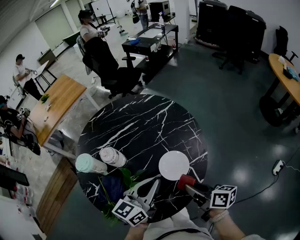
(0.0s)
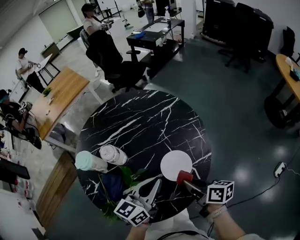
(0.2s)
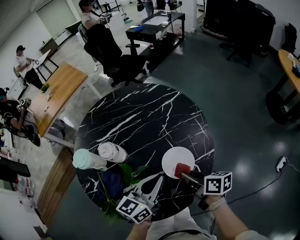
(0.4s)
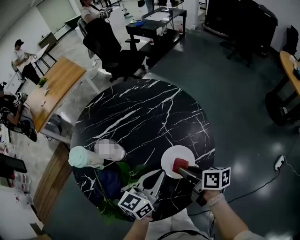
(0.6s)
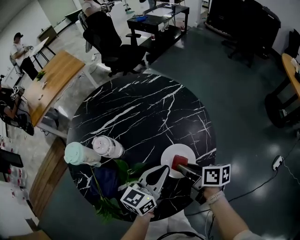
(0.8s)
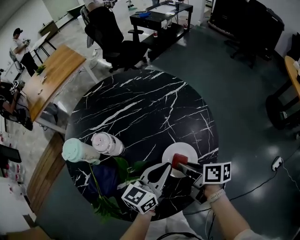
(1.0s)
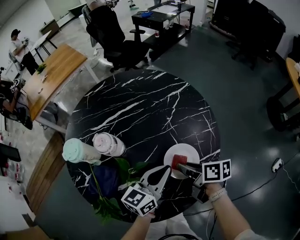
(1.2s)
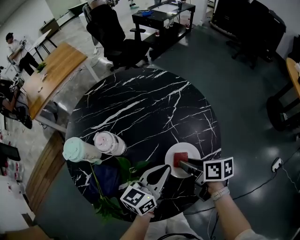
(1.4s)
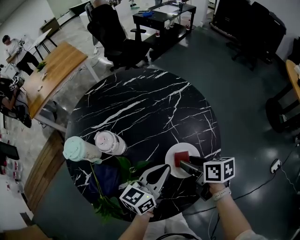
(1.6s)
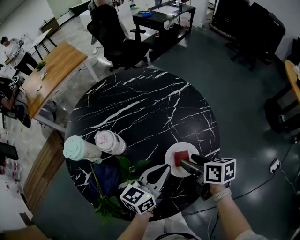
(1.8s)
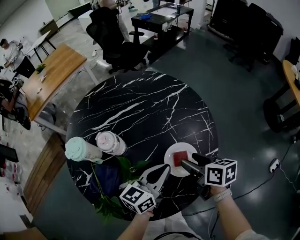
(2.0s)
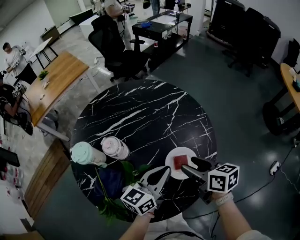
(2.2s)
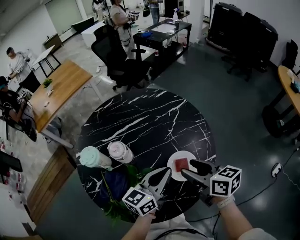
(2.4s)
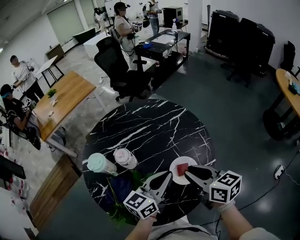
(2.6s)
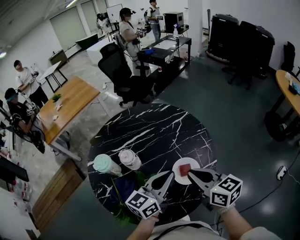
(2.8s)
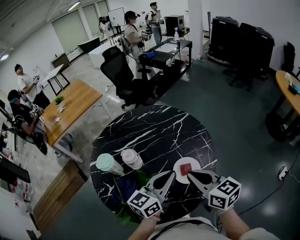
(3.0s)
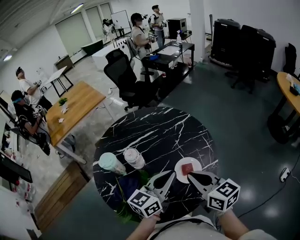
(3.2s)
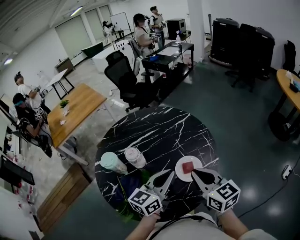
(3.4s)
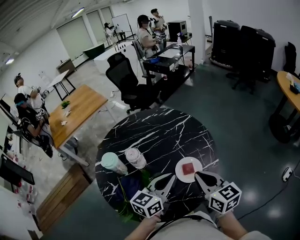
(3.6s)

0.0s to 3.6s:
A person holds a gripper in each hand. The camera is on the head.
0.0s to 1.8s: The left gripper moves downward, about 10 cm, while the right gripper moves forward and downward, about 15 cm, swivels some 20 degrees, and opens.
1.8s to 3.6s: The right gripper moves upward and backward, some 20 cm, swivels about 40 degrees, and closes its fingers; the left gripper is displaced upward by roughly 15 cm.

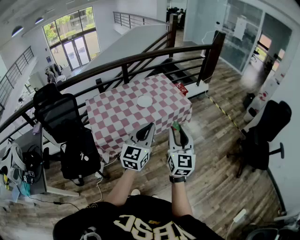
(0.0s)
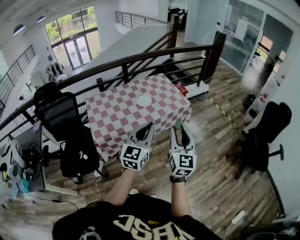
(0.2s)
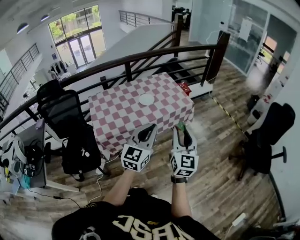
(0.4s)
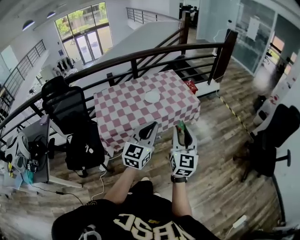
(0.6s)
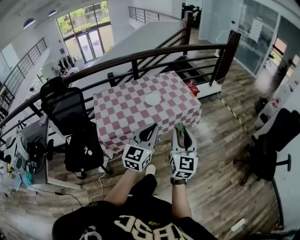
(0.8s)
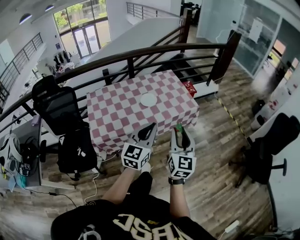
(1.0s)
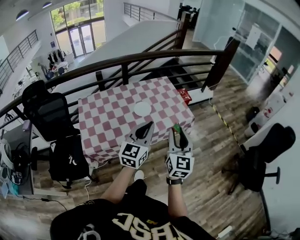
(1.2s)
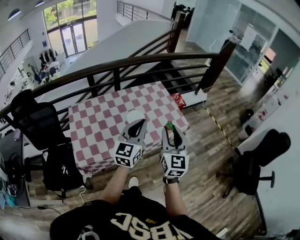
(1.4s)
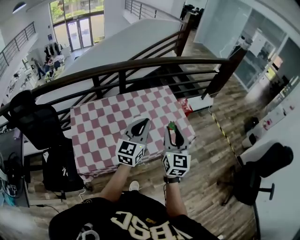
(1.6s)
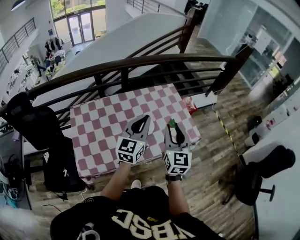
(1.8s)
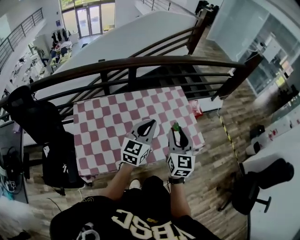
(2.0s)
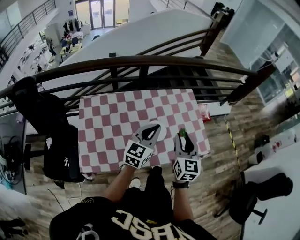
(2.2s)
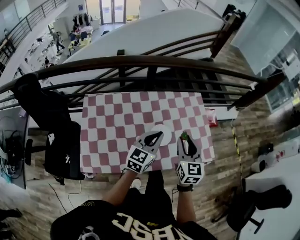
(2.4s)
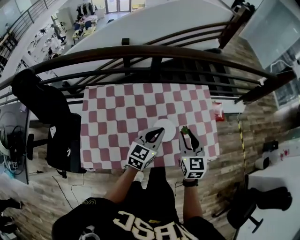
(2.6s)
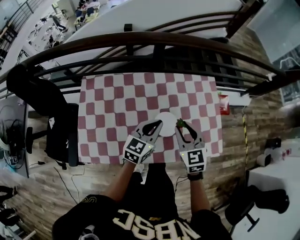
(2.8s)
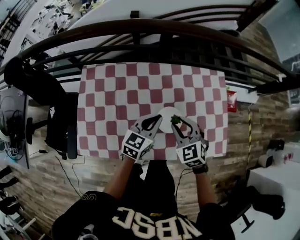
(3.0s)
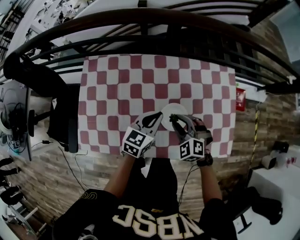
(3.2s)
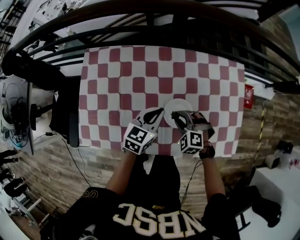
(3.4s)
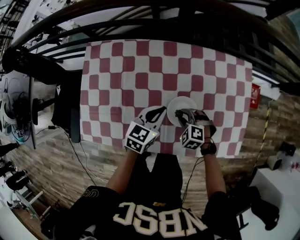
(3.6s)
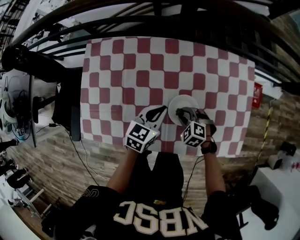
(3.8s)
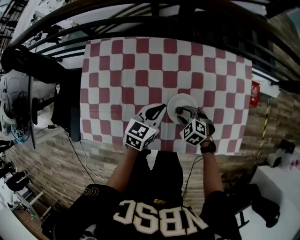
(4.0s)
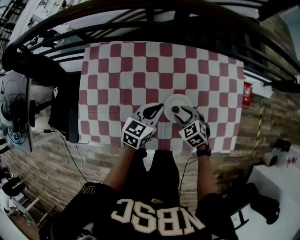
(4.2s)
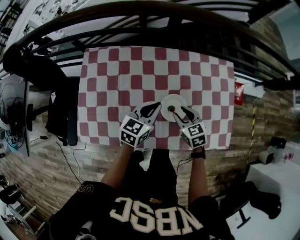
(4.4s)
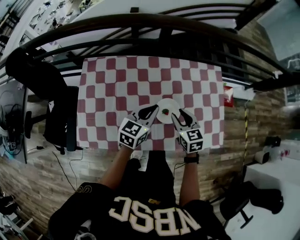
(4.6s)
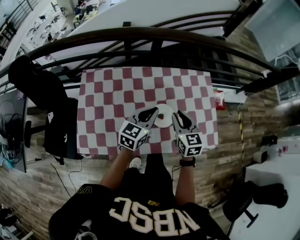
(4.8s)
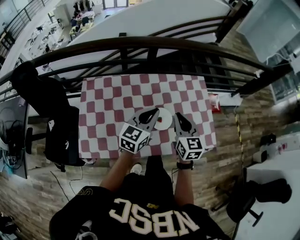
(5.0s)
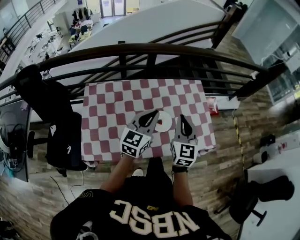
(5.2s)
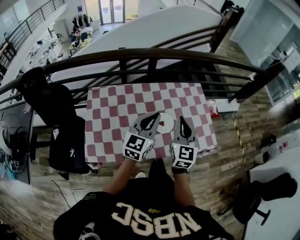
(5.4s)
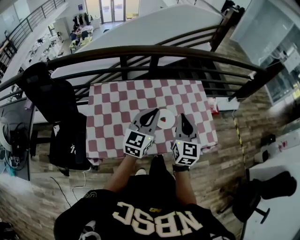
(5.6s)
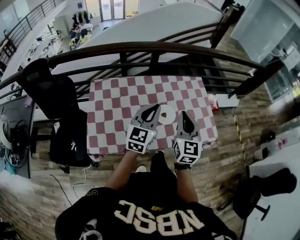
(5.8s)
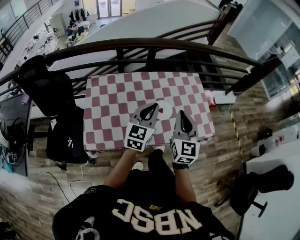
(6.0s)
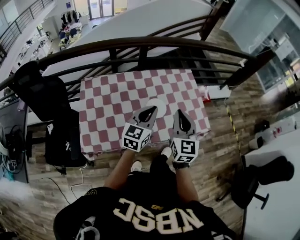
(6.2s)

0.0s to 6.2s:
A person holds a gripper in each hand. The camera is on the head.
0.0s to 1.6s: The grippers both shift forward by roughly 35 cm.
1.6s to 3.2s: Both grippers travel together downward, approximately 30 cm. The left gripper turns by about 30 degrees; the right gripper tilts its fingers approximately 50 degrees downward.
3.2s to 4.6s: The right gripper travels downward and back again, approximately 15 cm each way, and twists roughly 50 degrees clockwise, seen from behind. The left gripper changes place by roughly 5 cm.
4.6s to 6.2s: Both grippers move upward and backward, roughly 20 cm. The right gripper swivels roughly 40 degrees, and closes its fingers.

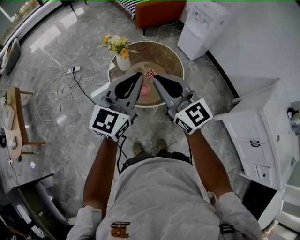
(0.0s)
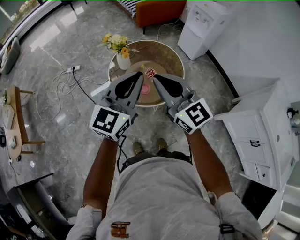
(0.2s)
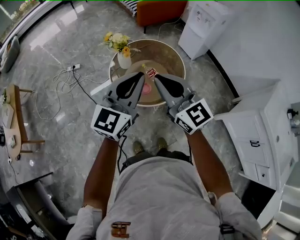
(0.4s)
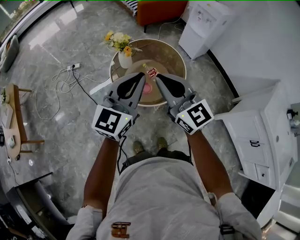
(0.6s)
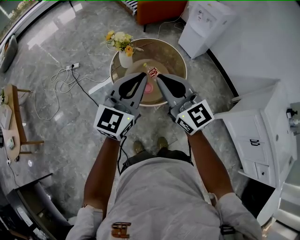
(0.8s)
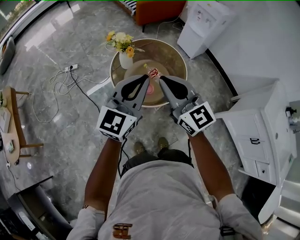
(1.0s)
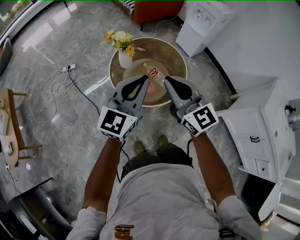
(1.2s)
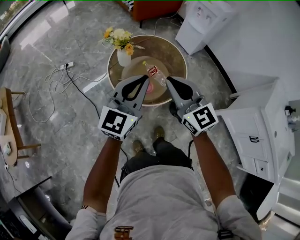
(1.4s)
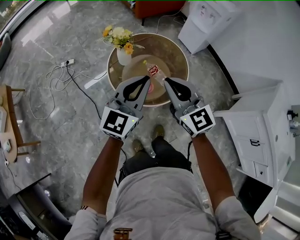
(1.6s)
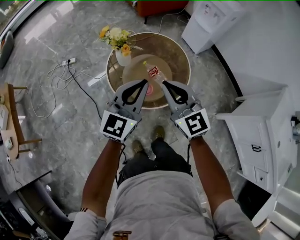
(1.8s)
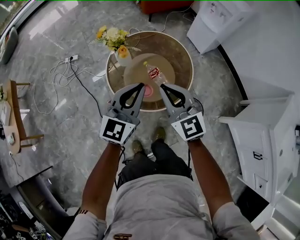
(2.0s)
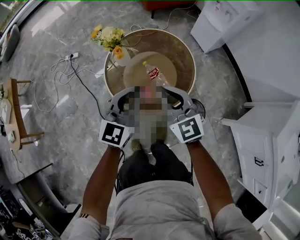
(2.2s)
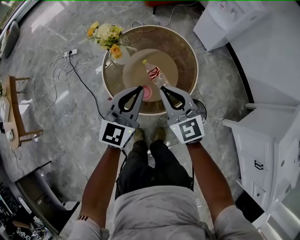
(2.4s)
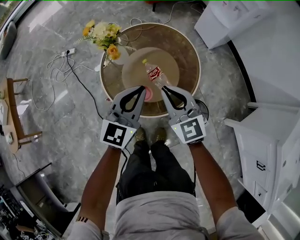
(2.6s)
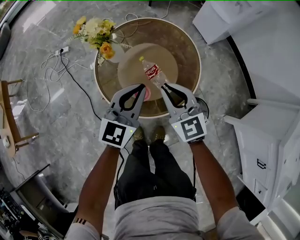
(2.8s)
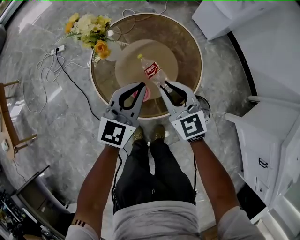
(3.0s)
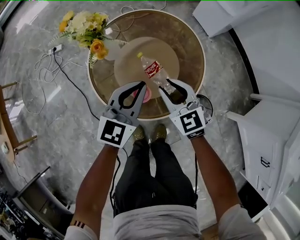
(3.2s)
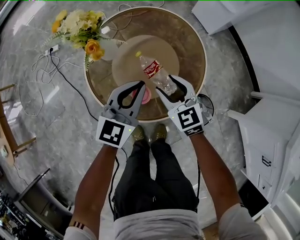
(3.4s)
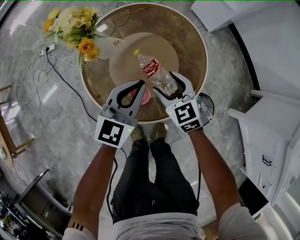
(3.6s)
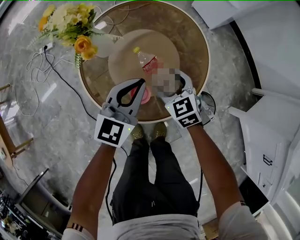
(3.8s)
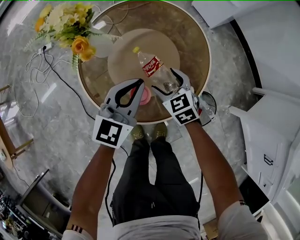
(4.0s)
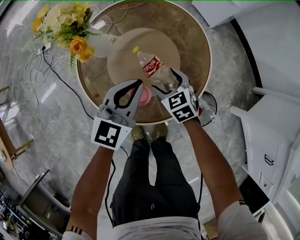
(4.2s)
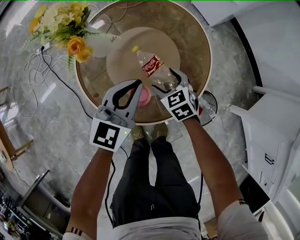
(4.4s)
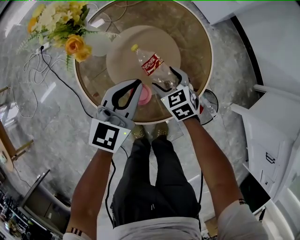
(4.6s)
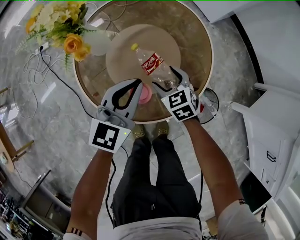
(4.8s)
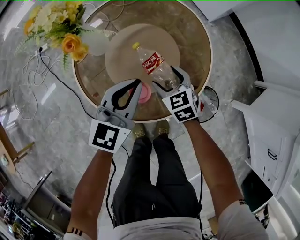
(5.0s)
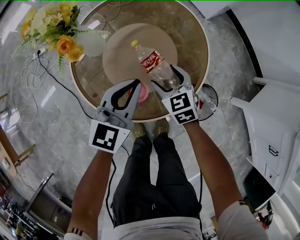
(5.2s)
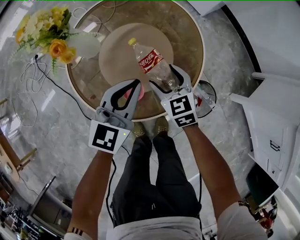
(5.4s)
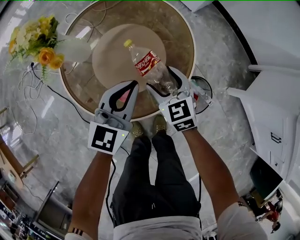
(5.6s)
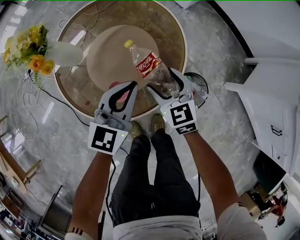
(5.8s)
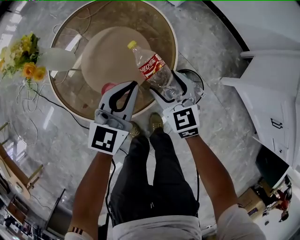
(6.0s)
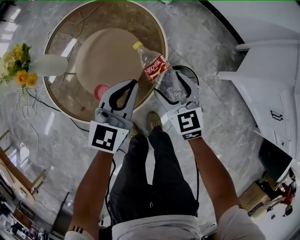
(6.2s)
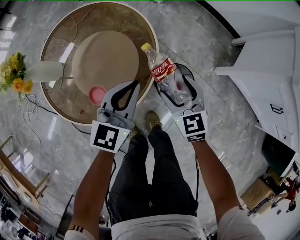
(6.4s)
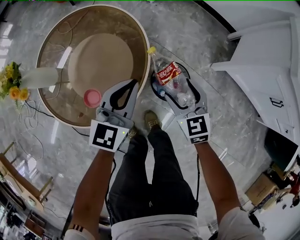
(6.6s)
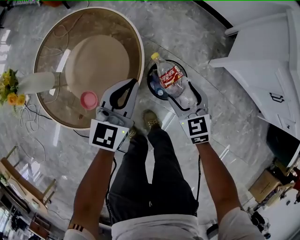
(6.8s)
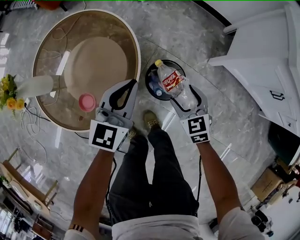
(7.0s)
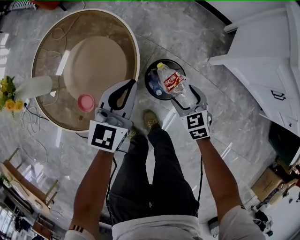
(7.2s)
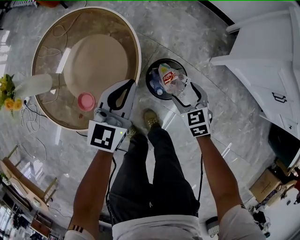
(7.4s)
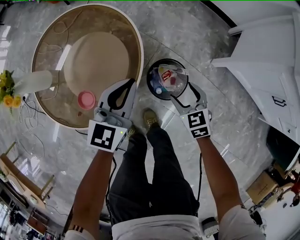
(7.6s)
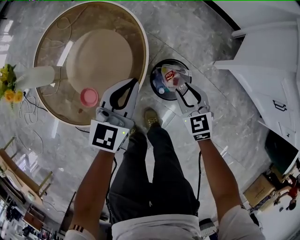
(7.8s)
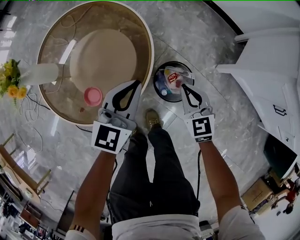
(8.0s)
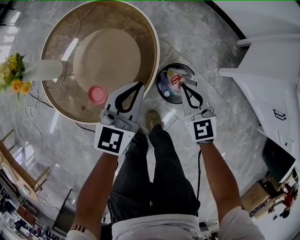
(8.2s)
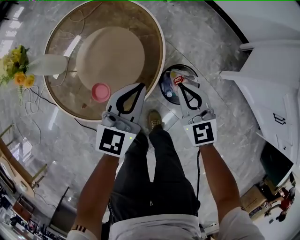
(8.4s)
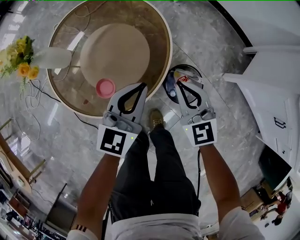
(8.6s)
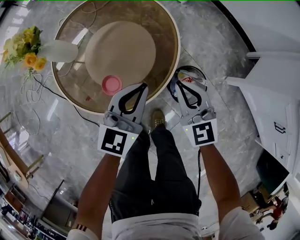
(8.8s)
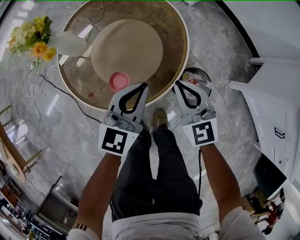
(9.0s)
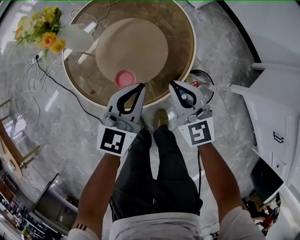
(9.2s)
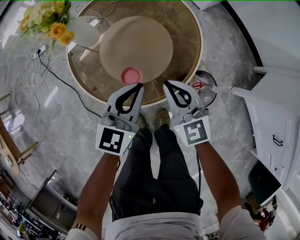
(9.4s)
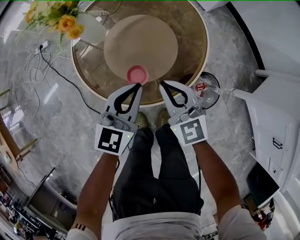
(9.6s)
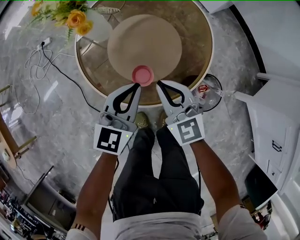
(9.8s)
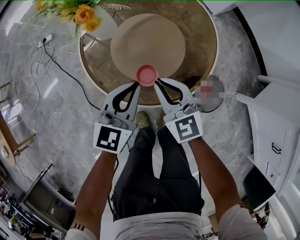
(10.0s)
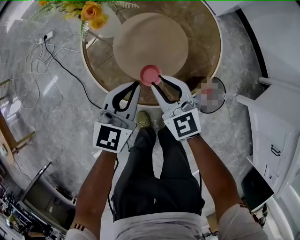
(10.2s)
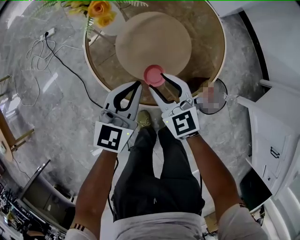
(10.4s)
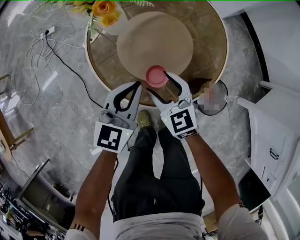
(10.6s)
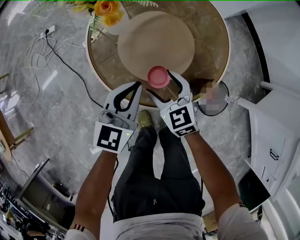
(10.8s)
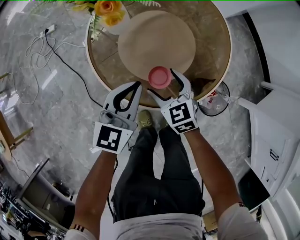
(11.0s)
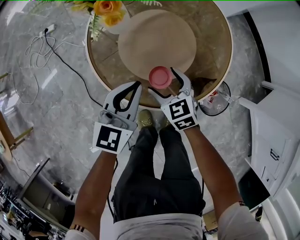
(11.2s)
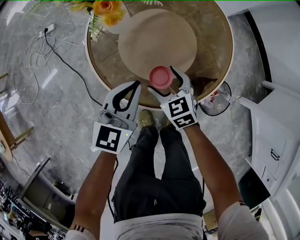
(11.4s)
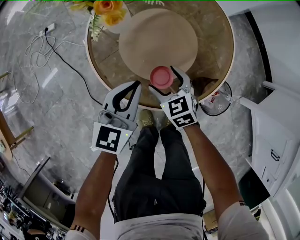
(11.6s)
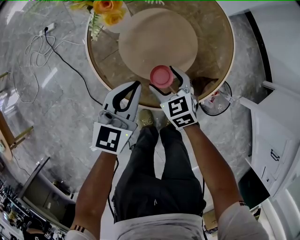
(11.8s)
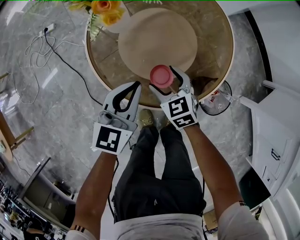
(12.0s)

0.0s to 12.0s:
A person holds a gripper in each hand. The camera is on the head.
0.0s to 1.6s: The grippers both shift downward and forward by approximately 10 cm.
1.6s to 3.0s: The two grippers go some 30 cm downward and forward.
3.0s to 4.4s: The left gripper goes about 10 cm downward, while the right gripper heads downward, covering about 25 cm, swivels approximately 30 degrees, and opens.
4.4s to 6.0s: The left gripper heads to the right, covering some 10 cm, while the right gripper travels to the right, upward and backward by approximately 15 cm, and swivels roughly 30 degrees.
6.0s to 7.6s: The left gripper is displaced to the right by roughly 15 cm, while the right gripper goes approximately 20 cm to the right.
7.6s to 9.0s: The left gripper shifts approximately 10 cm to the left, while the right gripper heads to the left and upward, covering roughly 25 cm, swivels about 30 degrees, and closes up.
9.0s to 10.4s: The grippers both shift to the left by approximately 20 cm. The right gripper opens up.
10.4s to 12.0s: The right gripper moves downward, roughly 10 cm, and opens.

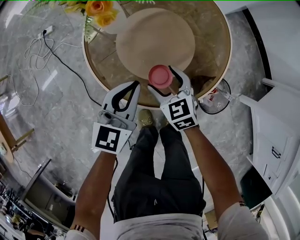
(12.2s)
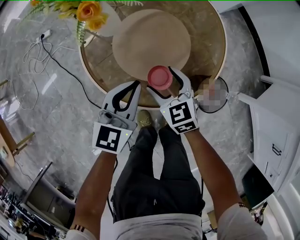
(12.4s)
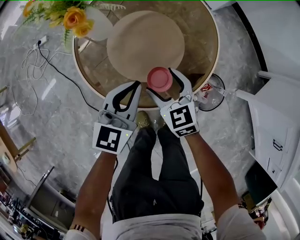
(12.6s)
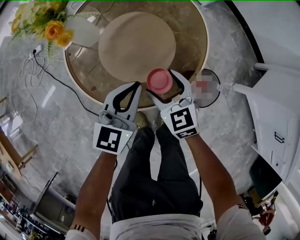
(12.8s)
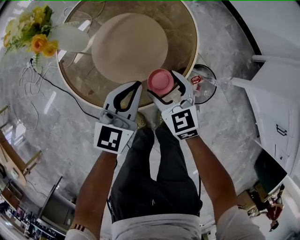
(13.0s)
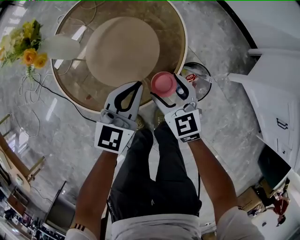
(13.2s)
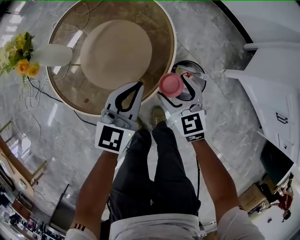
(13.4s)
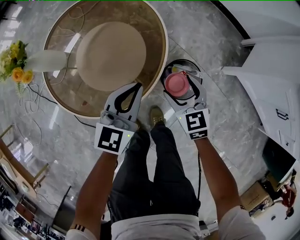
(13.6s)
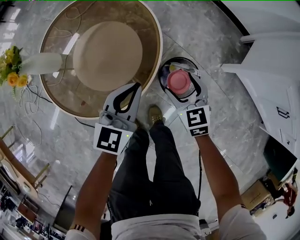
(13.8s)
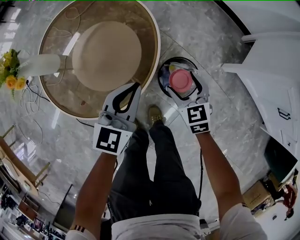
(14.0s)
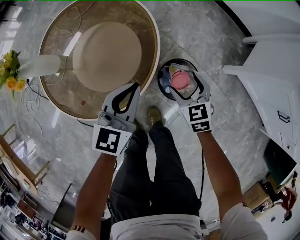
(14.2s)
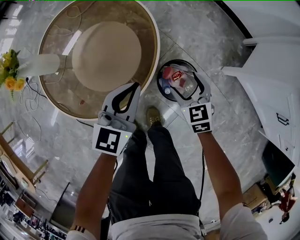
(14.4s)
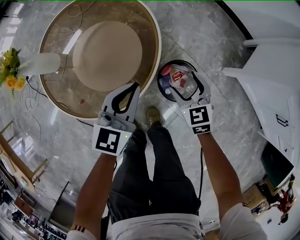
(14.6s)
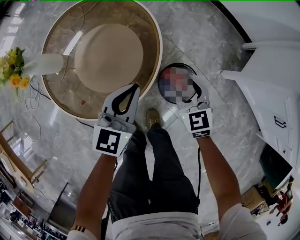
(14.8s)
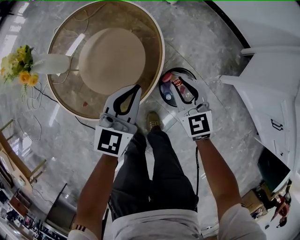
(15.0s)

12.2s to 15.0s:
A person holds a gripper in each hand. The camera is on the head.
12.2s to 13.6s: The two grippers go some 25 cm to the right. The left gripper turns by roughly 20 degrees; the right gripper swivels some 30 degrees.
13.6s to 15.0s: The right gripper shifts about 5 cm upward, and closes its fingers.
